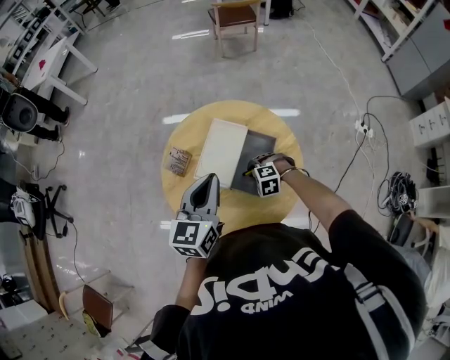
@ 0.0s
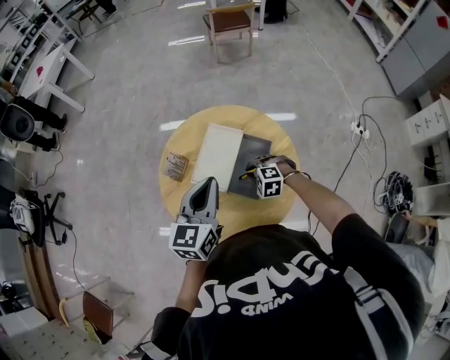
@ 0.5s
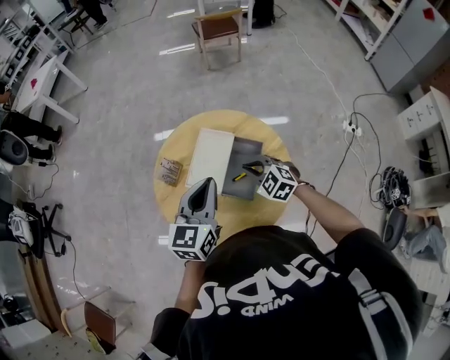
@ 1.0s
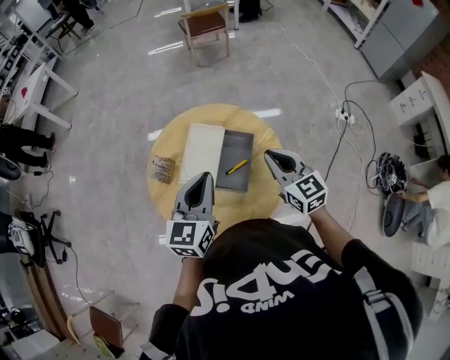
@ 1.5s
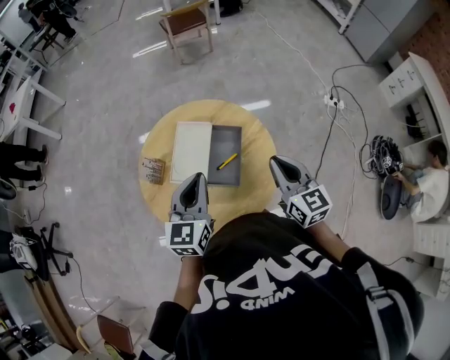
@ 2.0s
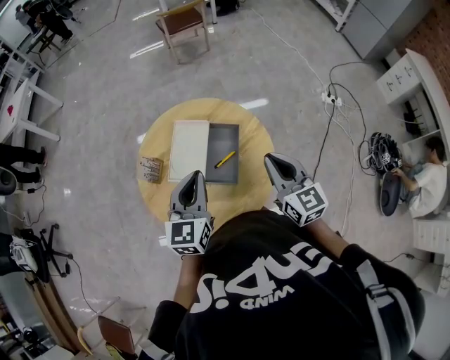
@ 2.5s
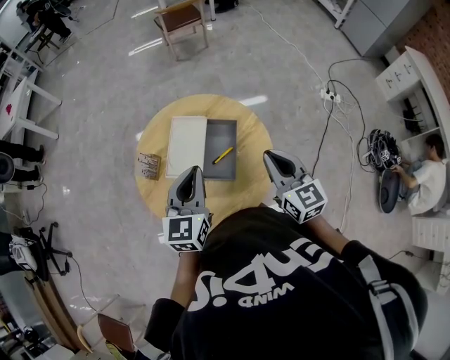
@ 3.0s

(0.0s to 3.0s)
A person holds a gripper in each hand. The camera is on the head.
0.0s - 1.5s: The right gripper is displaced upward by some 25 cm, and tips its fingers upward by approximately 50 degrees.
1.5s - 3.0s: The right gripper goes some 5 cm backward.

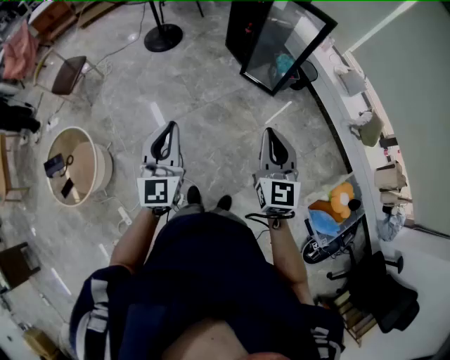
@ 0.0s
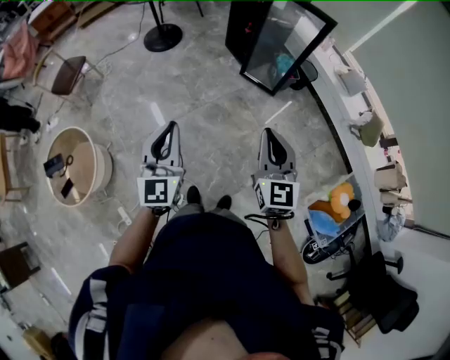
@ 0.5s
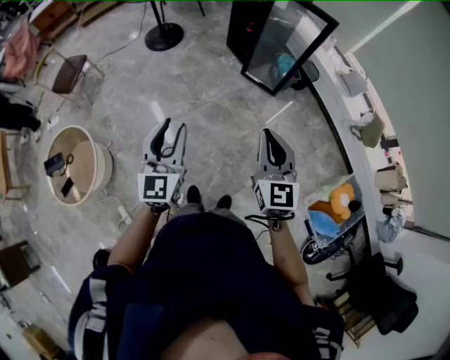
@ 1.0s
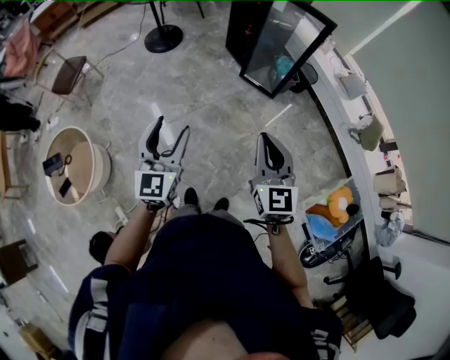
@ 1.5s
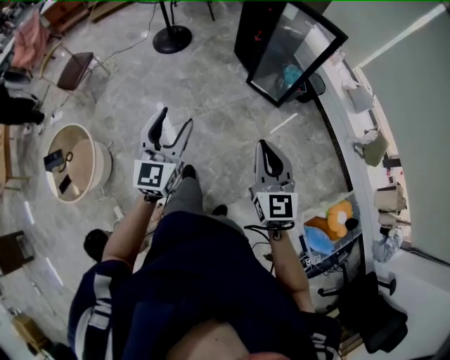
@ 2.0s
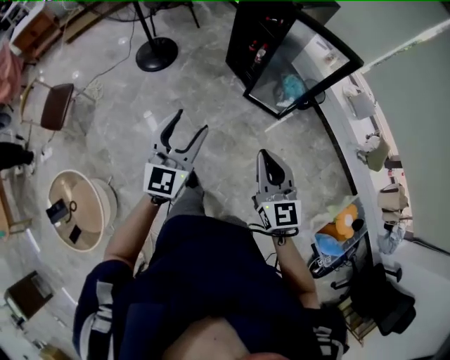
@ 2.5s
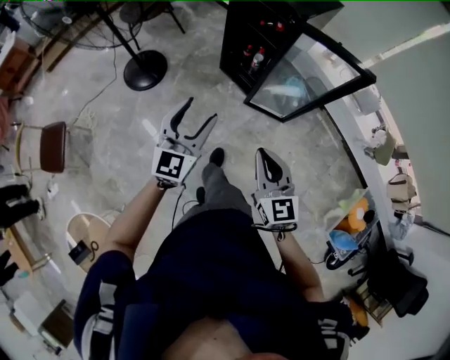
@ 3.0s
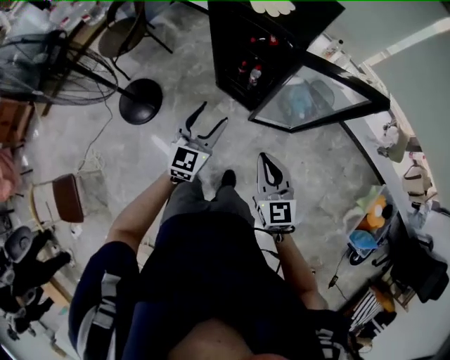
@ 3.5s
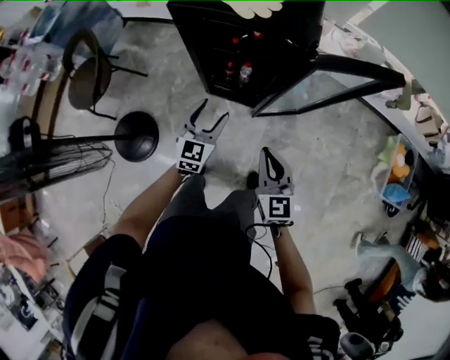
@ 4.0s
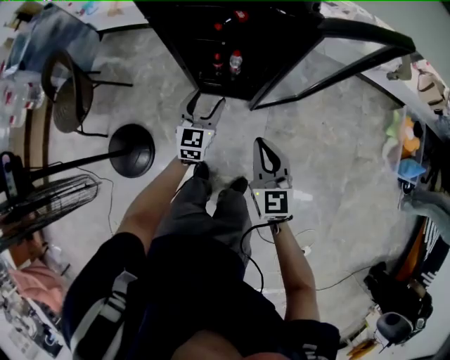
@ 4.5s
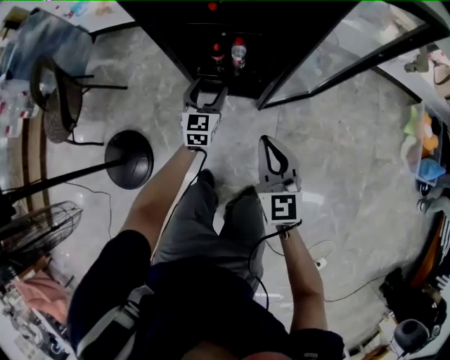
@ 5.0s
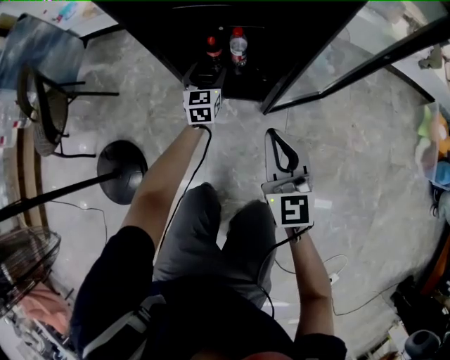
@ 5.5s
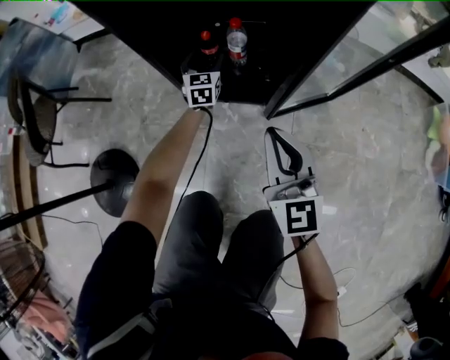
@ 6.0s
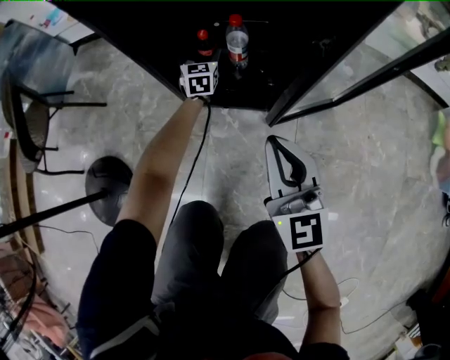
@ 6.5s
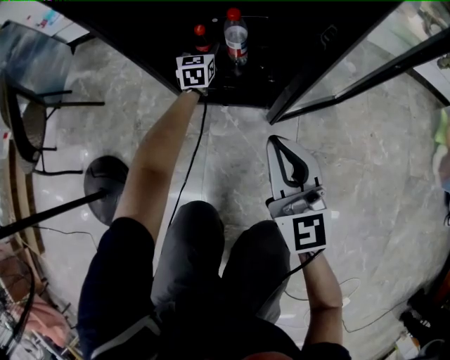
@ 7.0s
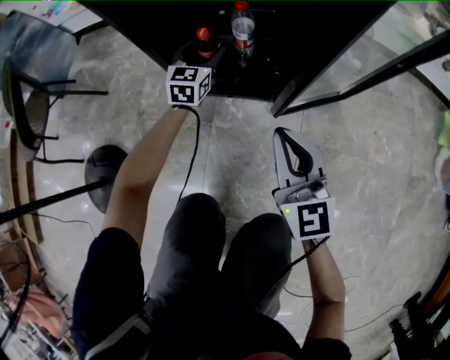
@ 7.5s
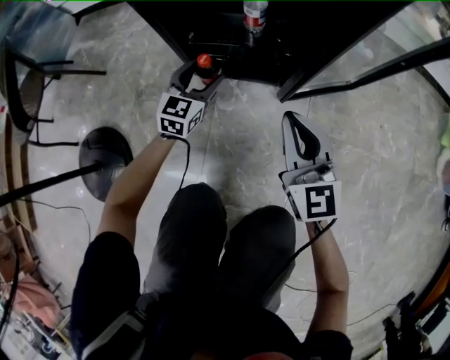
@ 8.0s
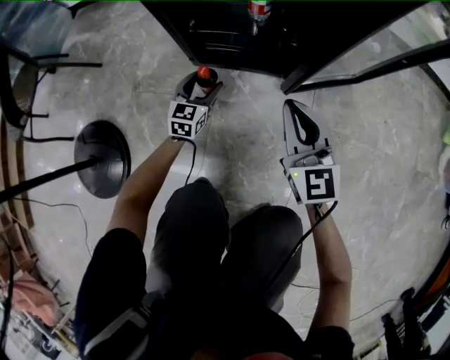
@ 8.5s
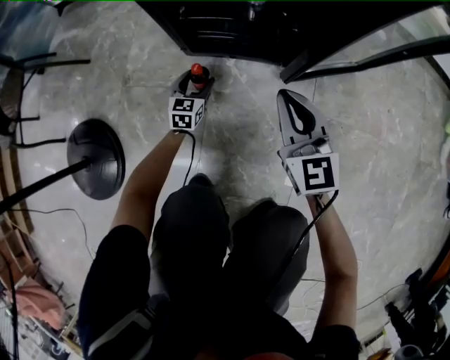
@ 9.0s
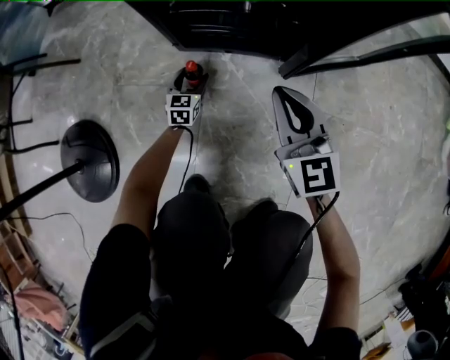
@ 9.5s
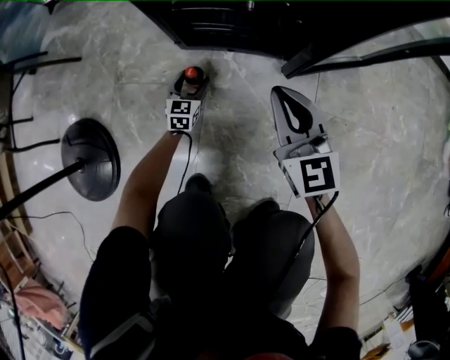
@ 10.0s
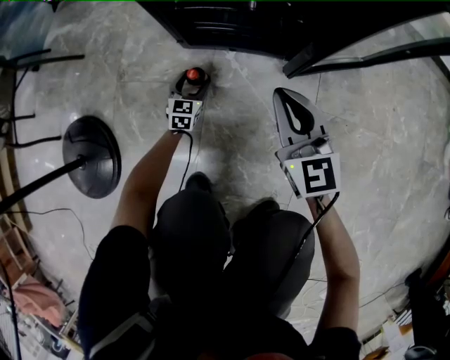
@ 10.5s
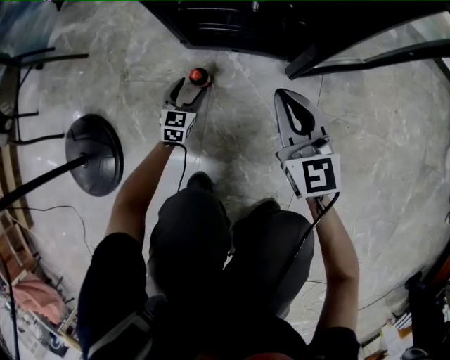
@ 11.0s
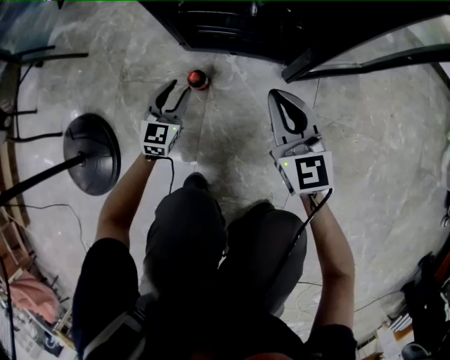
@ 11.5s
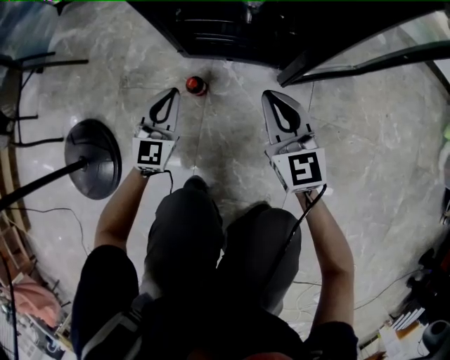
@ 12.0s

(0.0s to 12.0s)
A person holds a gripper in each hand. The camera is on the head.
0.0s - 2.0s: The left gripper shifts some 10 cm forward, and opens up.
2.0s - 4.0s: The two grippers travel together, approximately 80 cm. The left gripper turns by roughly 60 degrees; the right gripper changes its angle by some 50 degrees.
4.0s - 6.0s: The right gripper travels downward by roughly 35 cm. Meanwhile the left gripper is displaced downward and forward by approximately 60 cm.
6.0s - 8.0s: The left gripper moves backward and downward, approximately 15 cm; the right gripper goes about 10 cm downward.
8.0s - 10.0s: The left gripper goes about 30 cm downward. The right gripper moves downward, some 15 cm.
10.0s - 12.0s: The left gripper heads upward, covering about 20 cm, turns by about 20 degrees, and closes up.

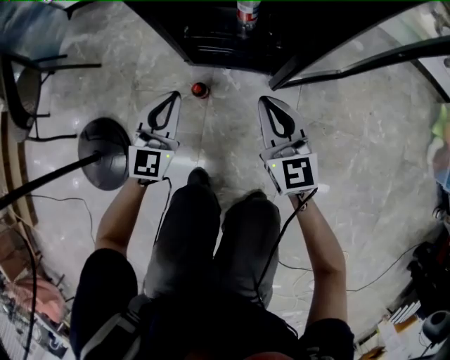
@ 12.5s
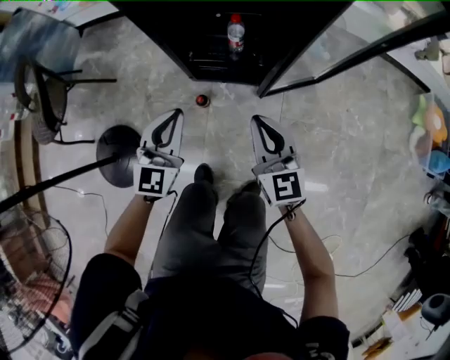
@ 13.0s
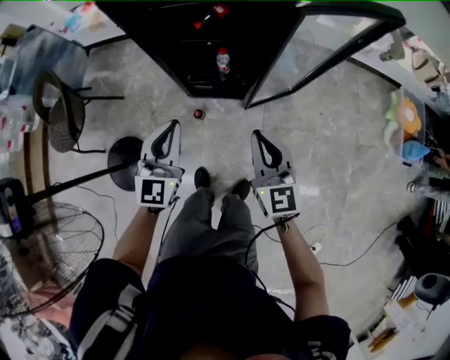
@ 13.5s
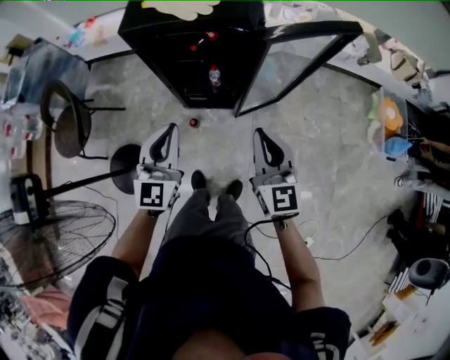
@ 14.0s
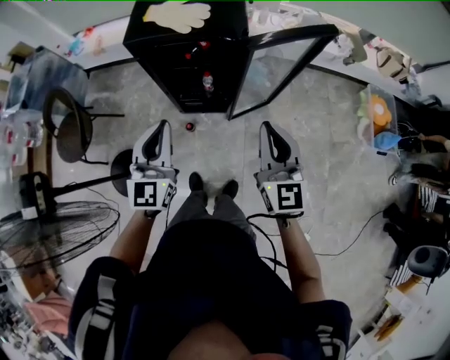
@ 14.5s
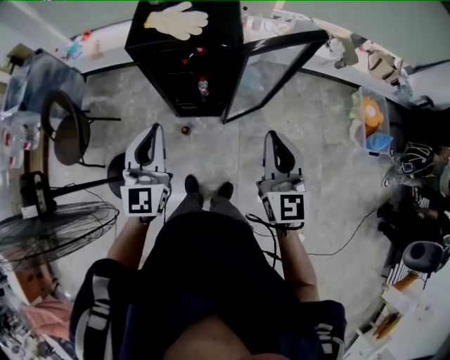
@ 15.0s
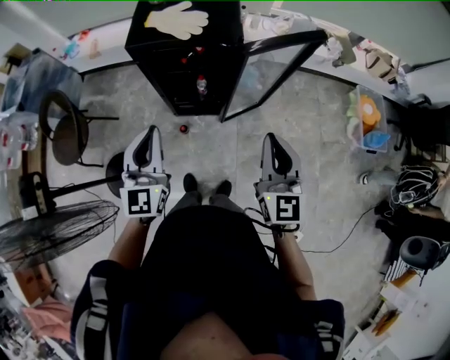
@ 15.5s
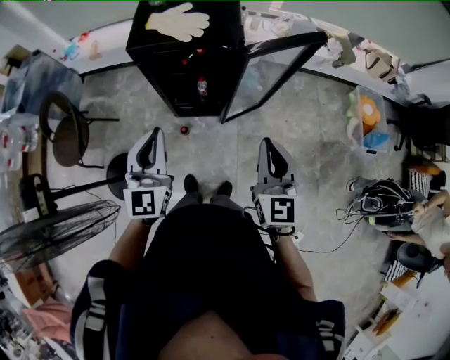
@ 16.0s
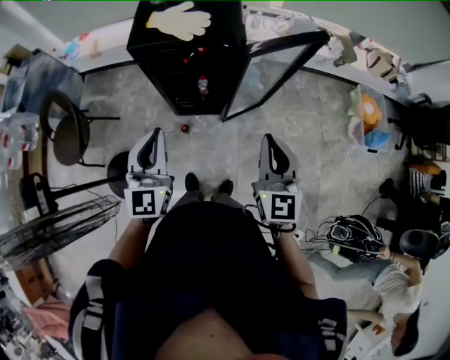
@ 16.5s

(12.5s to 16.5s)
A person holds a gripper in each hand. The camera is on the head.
12.5s - 14.5s: Both grippers travel together upward, approximately 70 cm.
14.5s - 16.5s: The left gripper moves about 5 cm.

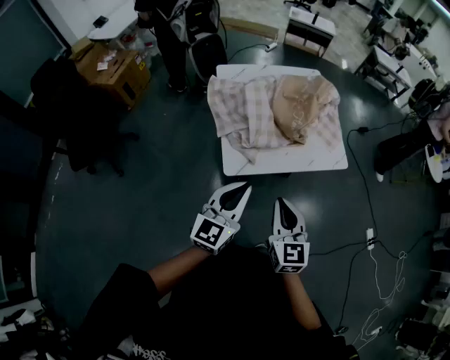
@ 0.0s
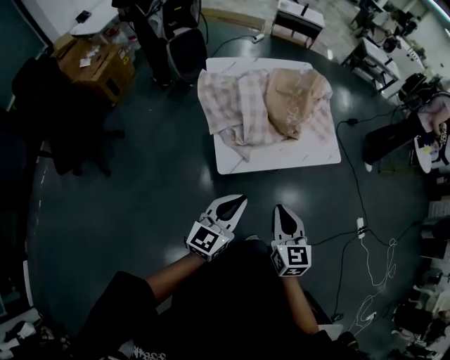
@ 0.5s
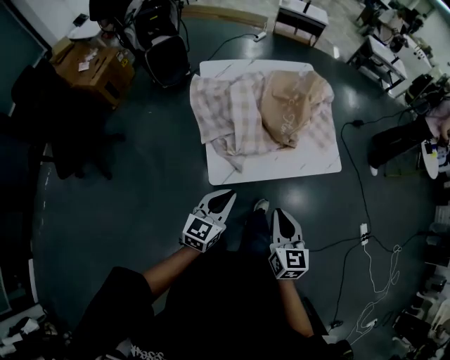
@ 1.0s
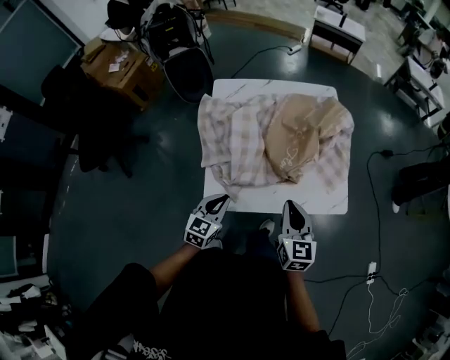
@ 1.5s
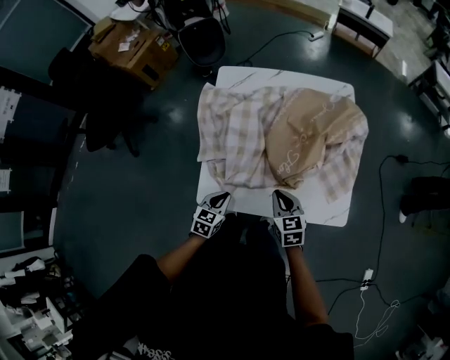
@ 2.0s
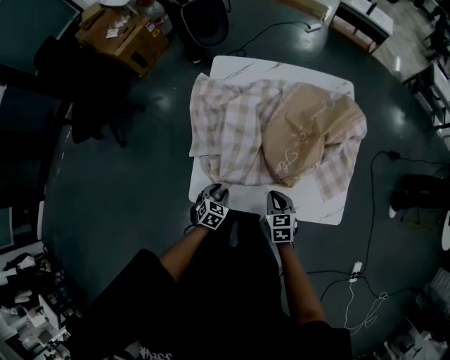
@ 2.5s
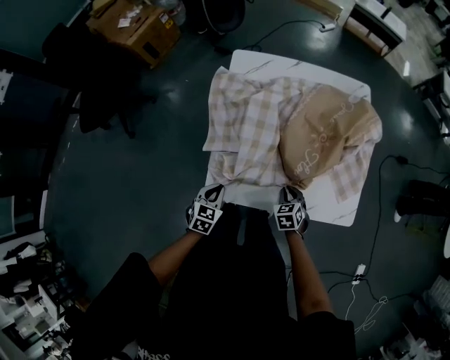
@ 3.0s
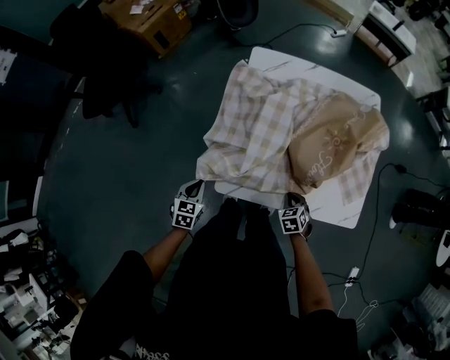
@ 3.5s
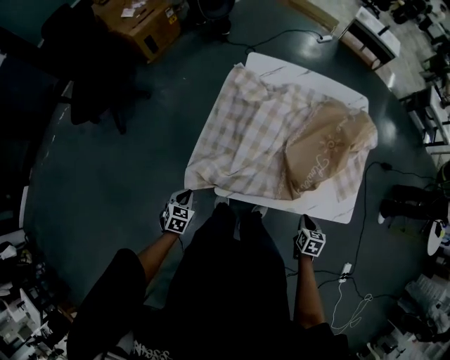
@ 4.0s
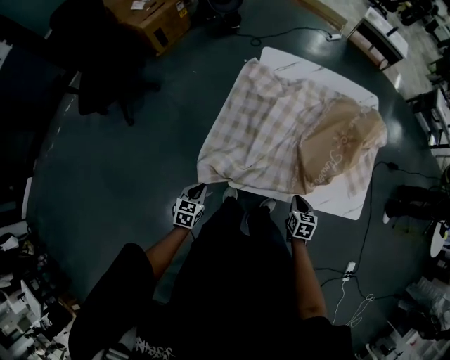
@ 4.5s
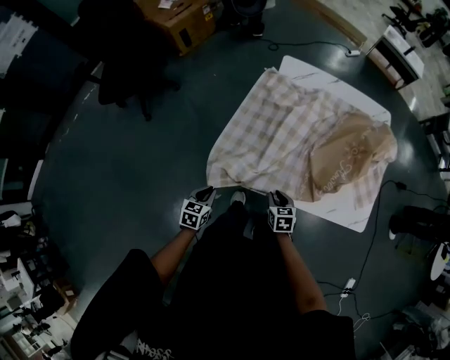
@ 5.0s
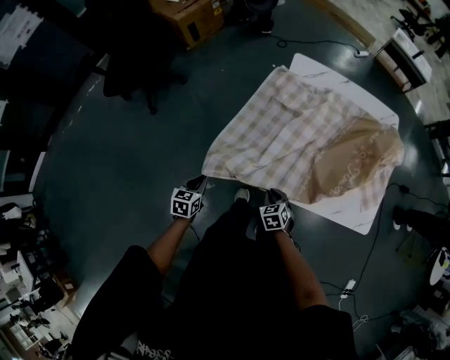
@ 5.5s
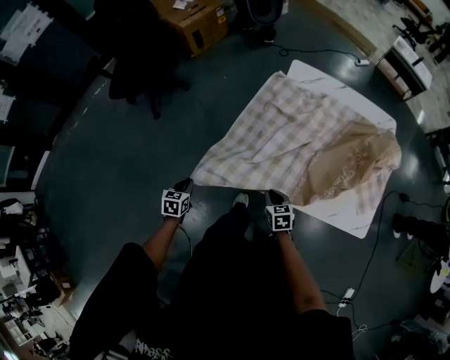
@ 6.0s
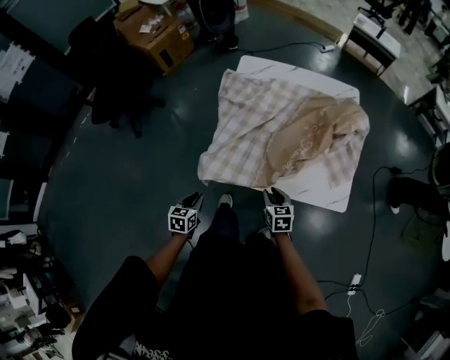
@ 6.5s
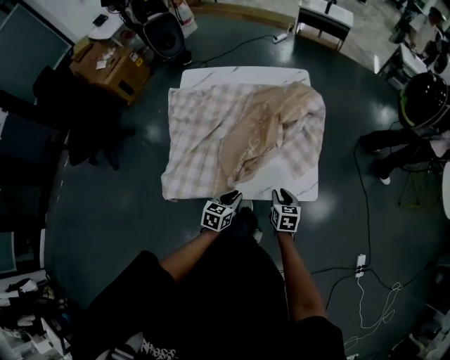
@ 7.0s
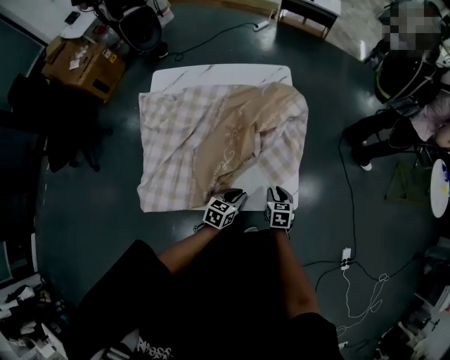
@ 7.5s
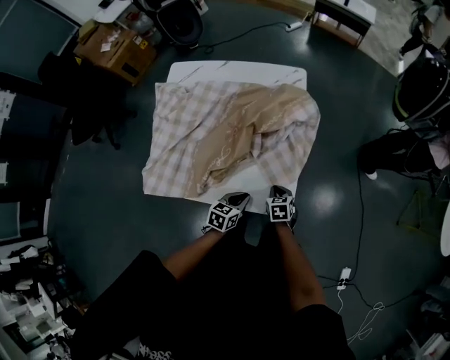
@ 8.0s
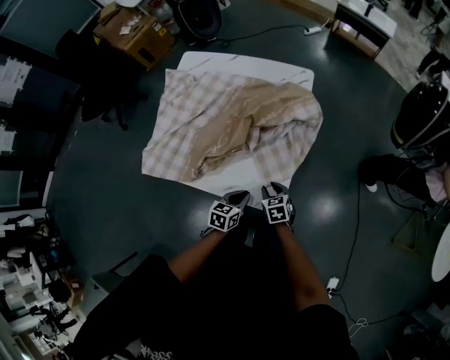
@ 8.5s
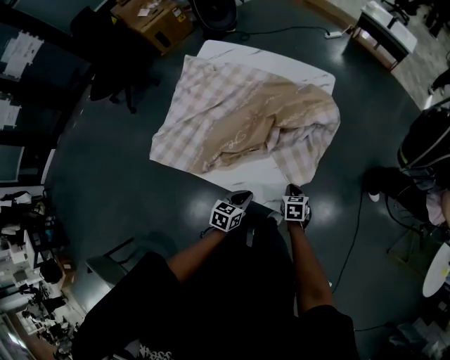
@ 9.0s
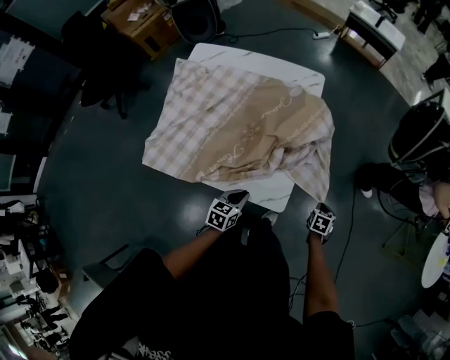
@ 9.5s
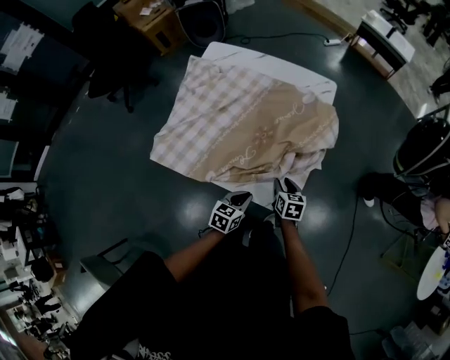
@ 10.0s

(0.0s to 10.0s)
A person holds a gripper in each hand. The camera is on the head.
0.0s - 2.0s: The left gripper goes some 30 cm downward, and points its fingers some 40 degrees further downward. Meanwhile the right gripper moves some 40 cm, and turns by some 30 degrees.
2.0s - 4.0s: The left gripper goes about 25 cm to the left, and opens and closes again, while the right gripper shifts some 15 cm backward and downward, and changes its angle by some 30 degrees.
4.0s - 6.0s: The right gripper moves some 25 cm, and turns by approximately 30 degrees; the left gripper moves some 10 cm, and rotates some 20 degrees.
6.0s - 8.0s: The two grippers travel together, about 60 cm. The right gripper opens, then closes once more. Meanwhile the left gripper swivels some 30 degrees.
8.0s - 10.0s: The right gripper opens its fingers.
